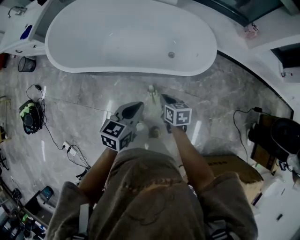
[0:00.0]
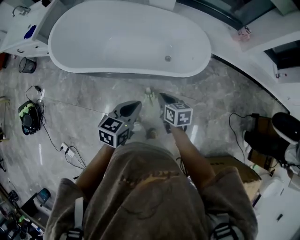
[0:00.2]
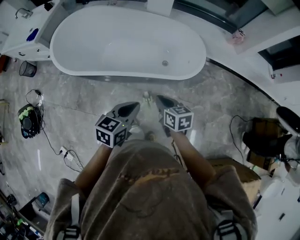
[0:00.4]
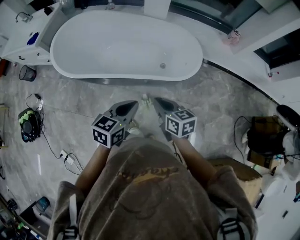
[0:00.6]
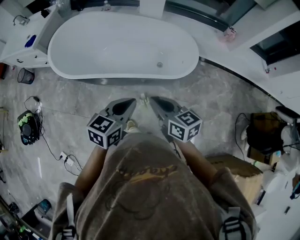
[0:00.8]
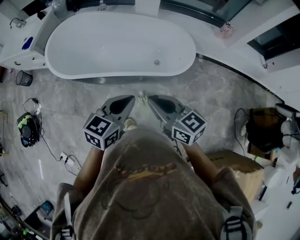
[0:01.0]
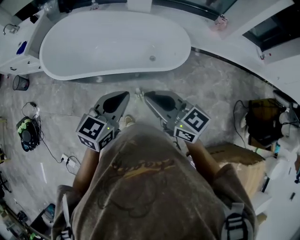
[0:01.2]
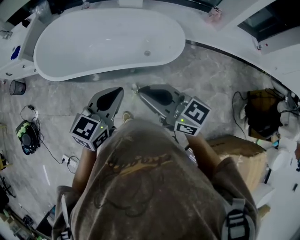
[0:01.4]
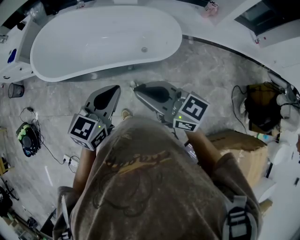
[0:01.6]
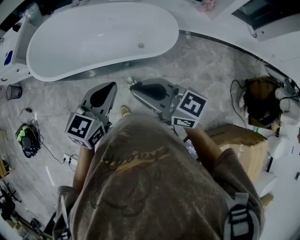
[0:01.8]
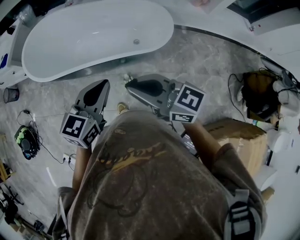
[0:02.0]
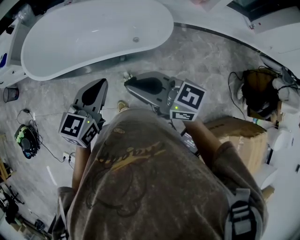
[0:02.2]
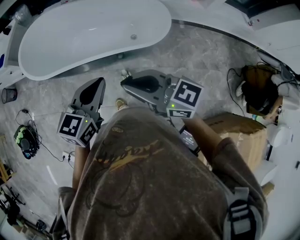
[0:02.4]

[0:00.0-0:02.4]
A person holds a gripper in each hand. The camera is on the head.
0.0 to 1.2 s: The left gripper moves upward, roughly 15 cm, and turns by roughly 20 degrees. Meanwhile the right gripper is displaced upward by approximately 30 cm, and tilts its fingers about 40 degrees upward.
1.2 to 2.4 s: The grippers move only a little.

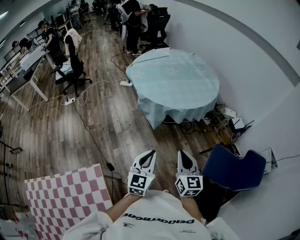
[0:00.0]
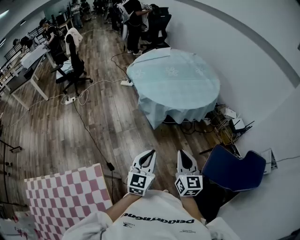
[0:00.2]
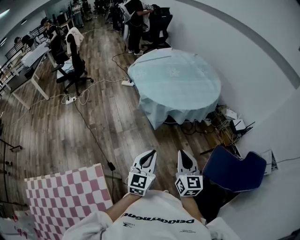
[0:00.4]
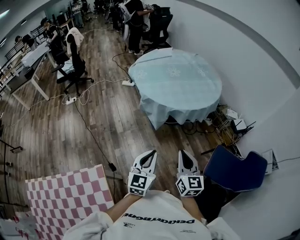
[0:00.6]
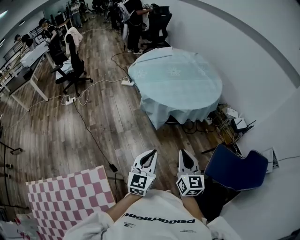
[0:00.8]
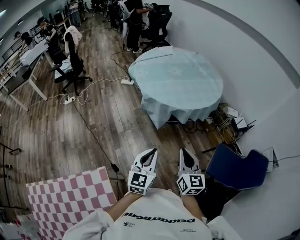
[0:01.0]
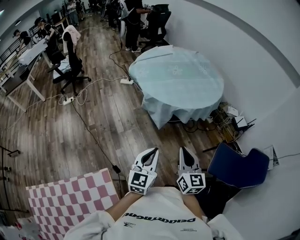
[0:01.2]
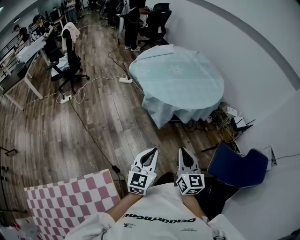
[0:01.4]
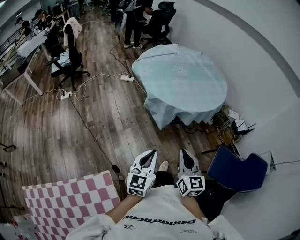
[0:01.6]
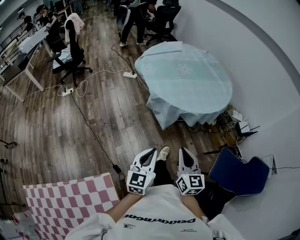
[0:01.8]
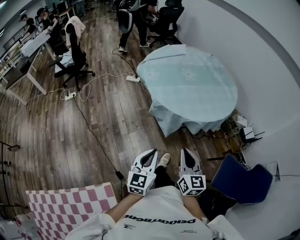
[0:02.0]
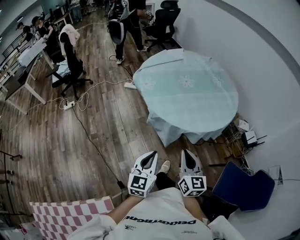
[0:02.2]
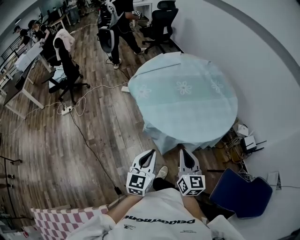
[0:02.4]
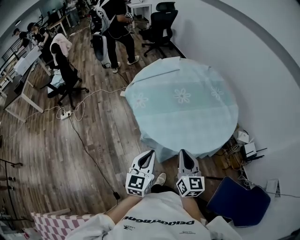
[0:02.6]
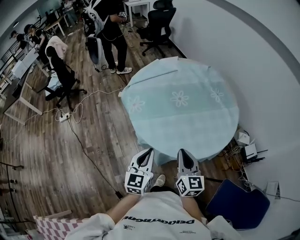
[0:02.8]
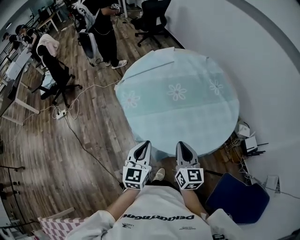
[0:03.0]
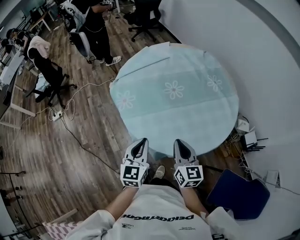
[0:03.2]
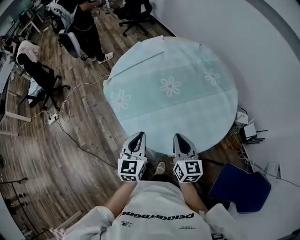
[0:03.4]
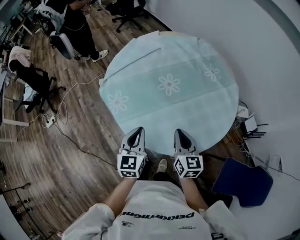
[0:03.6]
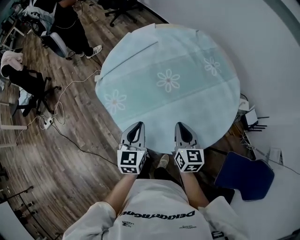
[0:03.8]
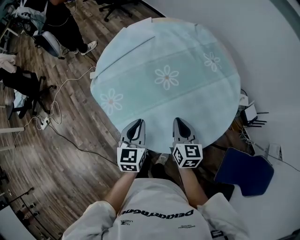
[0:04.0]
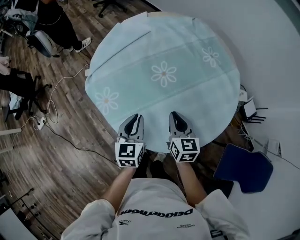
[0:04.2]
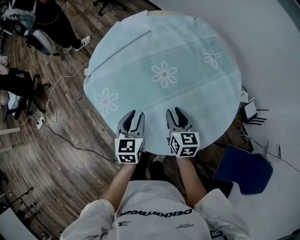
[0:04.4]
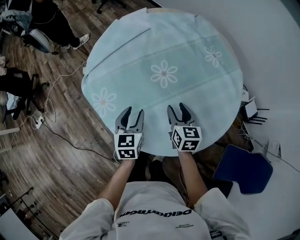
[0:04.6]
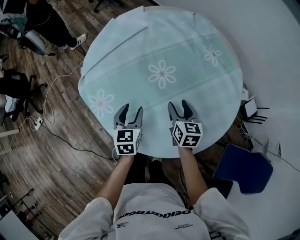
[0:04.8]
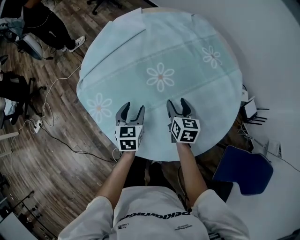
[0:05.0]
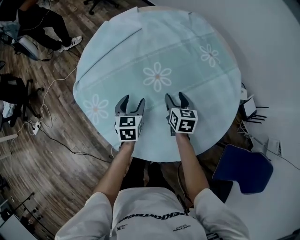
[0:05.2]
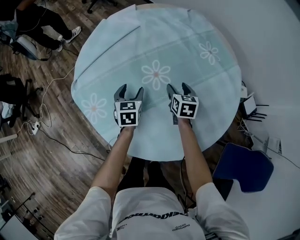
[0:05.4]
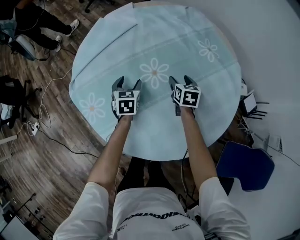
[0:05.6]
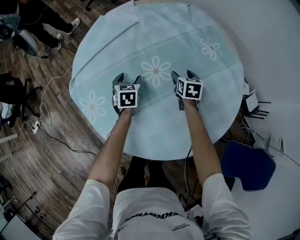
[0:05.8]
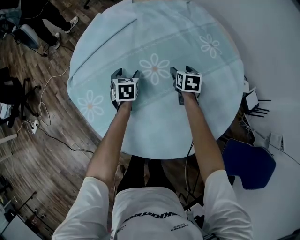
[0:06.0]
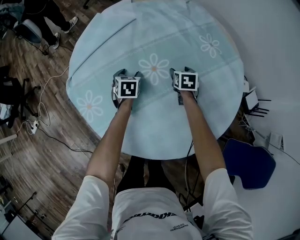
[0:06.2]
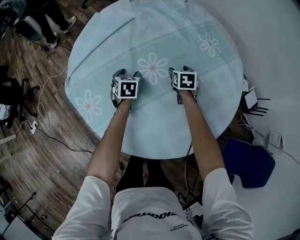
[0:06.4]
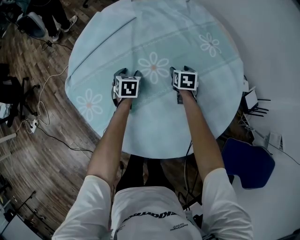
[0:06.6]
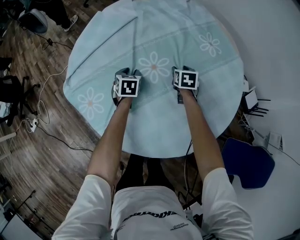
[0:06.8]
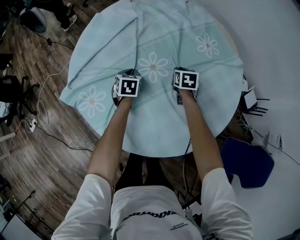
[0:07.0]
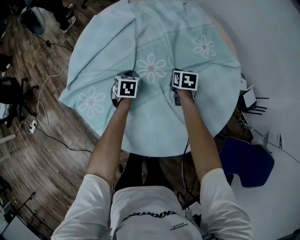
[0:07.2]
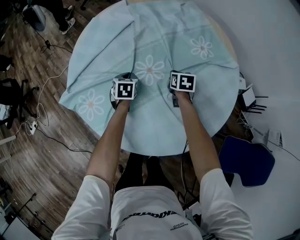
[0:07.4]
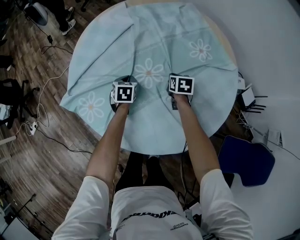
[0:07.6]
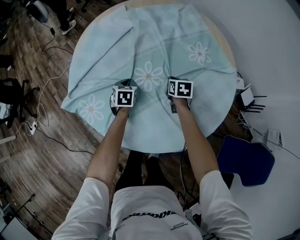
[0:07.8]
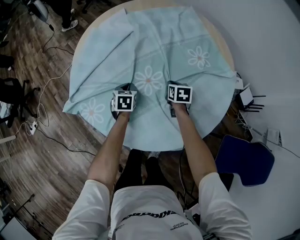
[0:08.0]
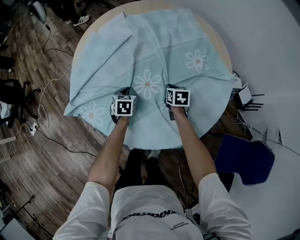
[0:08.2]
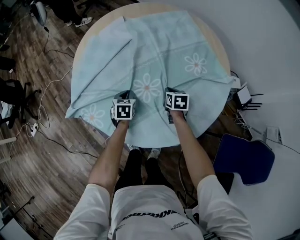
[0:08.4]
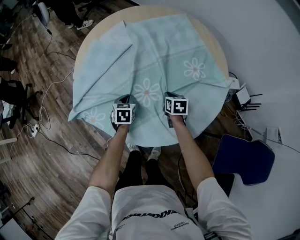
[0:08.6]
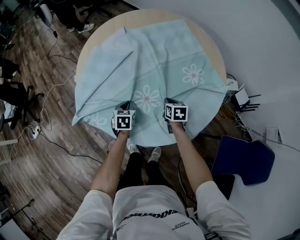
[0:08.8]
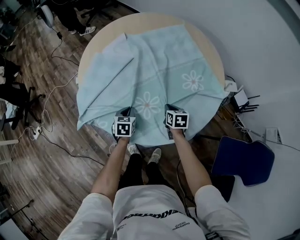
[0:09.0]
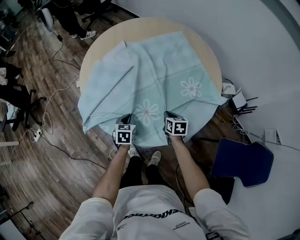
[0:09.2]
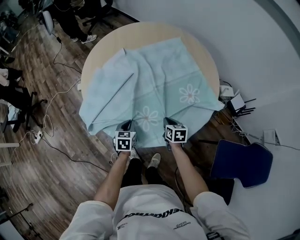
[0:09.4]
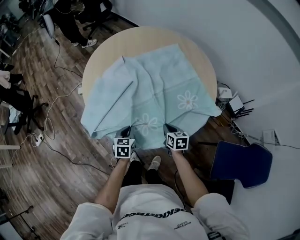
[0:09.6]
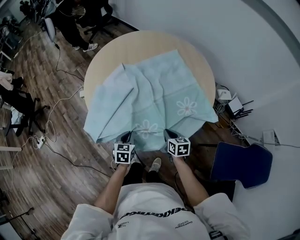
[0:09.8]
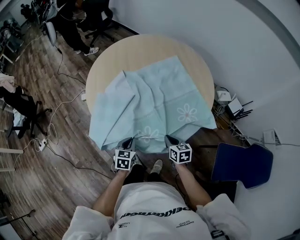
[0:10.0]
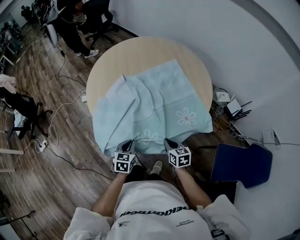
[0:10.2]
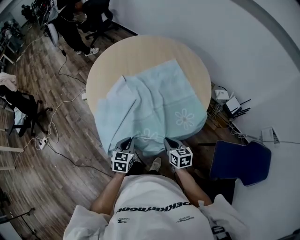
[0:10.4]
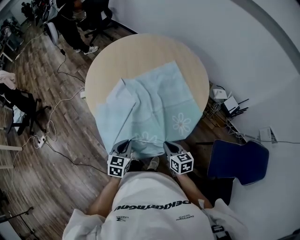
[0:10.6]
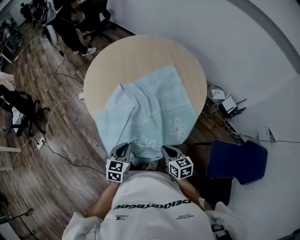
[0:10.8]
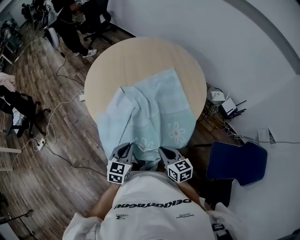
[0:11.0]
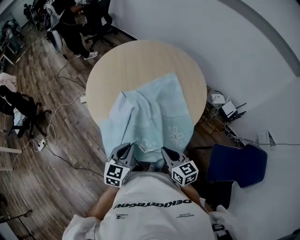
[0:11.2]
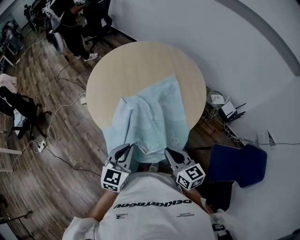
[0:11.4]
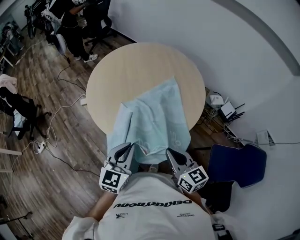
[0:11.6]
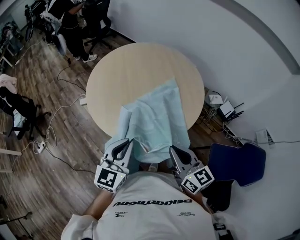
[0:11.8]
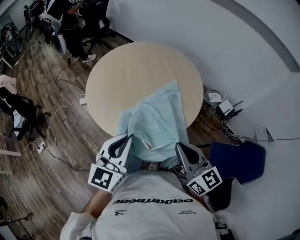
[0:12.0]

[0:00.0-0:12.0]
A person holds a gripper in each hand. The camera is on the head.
0.0 to 1.6 s: The two grippers go roughly 15 cm to the left.
1.6 to 3.0 s: The pair of grippers is taken forward, some 50 cm.
3.0 to 4.4 s: Both grippers travel together forward and downward, some 30 cm. The right gripper changes its angle by some 20 degrees, and opens; the left gripper opens up.
4.4 to 6.0 s: The left gripper goes approximately 30 cm forward and downward, and opens. Meanwhile the right gripper goes some 30 cm forward, downward and to the right, and opens up.
6.0 to 7.6 s: The left gripper changes place by about 5 cm, and closes up. The right gripper goes some 5 cm backward, and closes its fingers.
7.6 to 9.0 s: Both grippers move backward, about 20 cm.
9.0 to 10.4 s: The two grippers go about 25 cm backward and upward.
10.4 to 12.0 s: The two grippers go some 30 cm upward. The left gripper tips its fingers upward by approximately 30 degrees. The right gripper angles its fingers upward, by about 30 degrees.

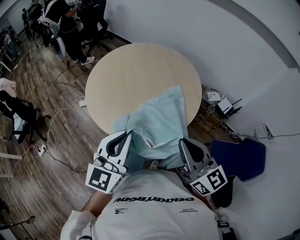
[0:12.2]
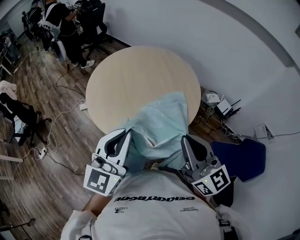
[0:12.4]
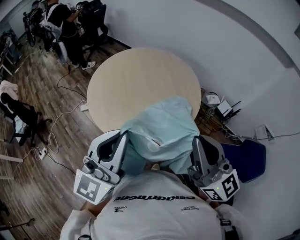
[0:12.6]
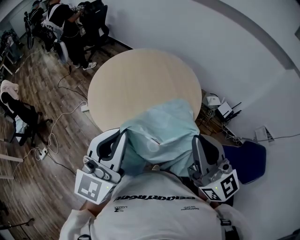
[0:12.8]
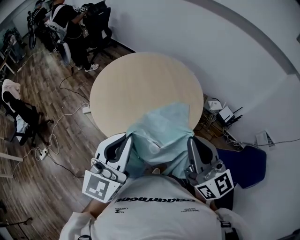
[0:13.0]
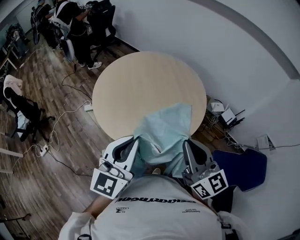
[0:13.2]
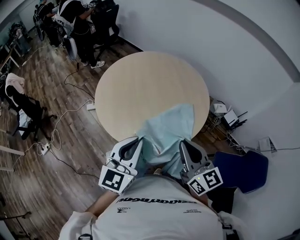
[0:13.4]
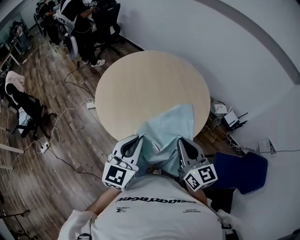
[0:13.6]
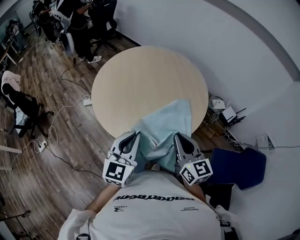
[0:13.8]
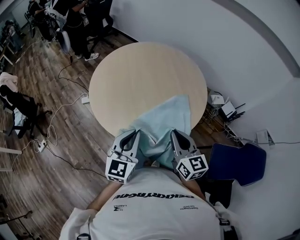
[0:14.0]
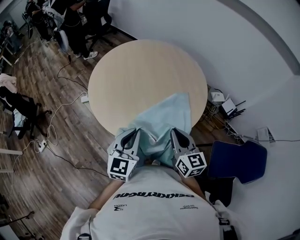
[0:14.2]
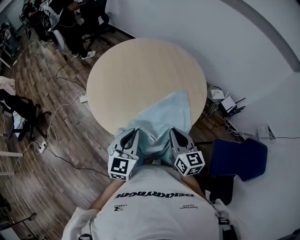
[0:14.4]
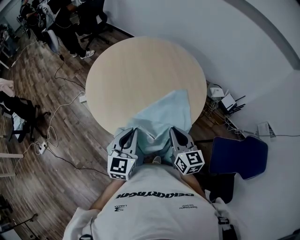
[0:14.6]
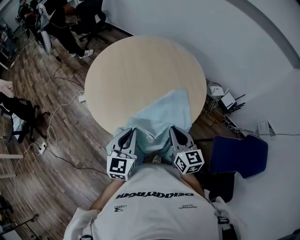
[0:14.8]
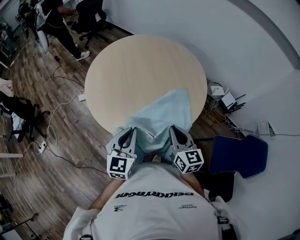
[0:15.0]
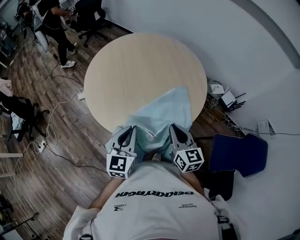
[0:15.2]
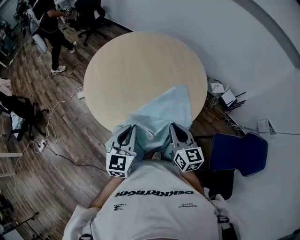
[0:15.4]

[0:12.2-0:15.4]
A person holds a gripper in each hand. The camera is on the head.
12.2 to 13.8 s: The right gripper goes about 10 cm downward and forward, while the left gripper is displaced downward by about 10 cm.
13.8 to 15.4 s: The grippers both shift downward by about 10 cm.

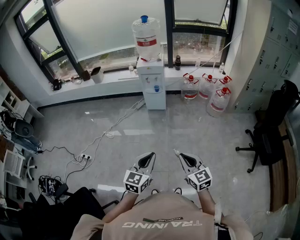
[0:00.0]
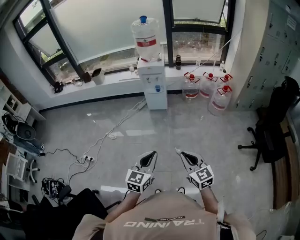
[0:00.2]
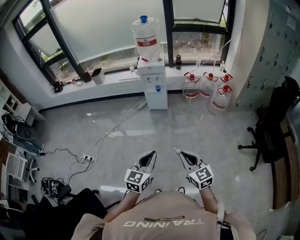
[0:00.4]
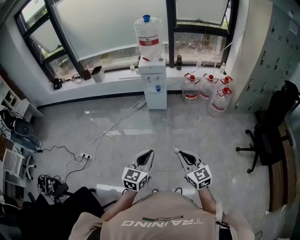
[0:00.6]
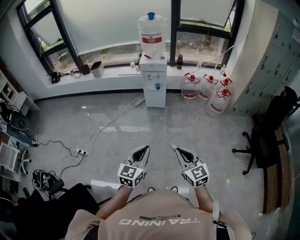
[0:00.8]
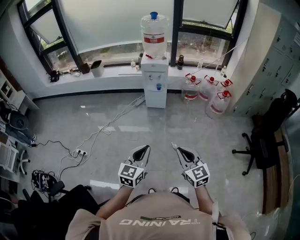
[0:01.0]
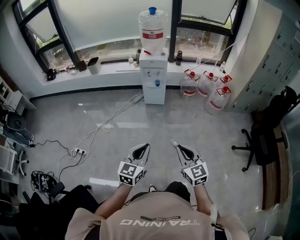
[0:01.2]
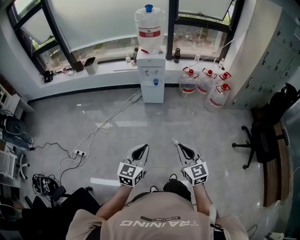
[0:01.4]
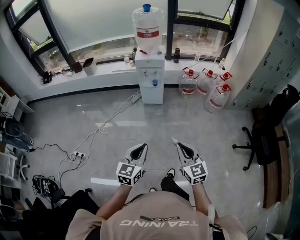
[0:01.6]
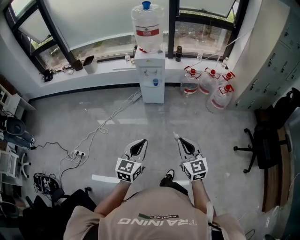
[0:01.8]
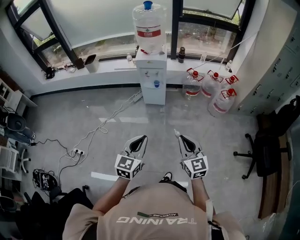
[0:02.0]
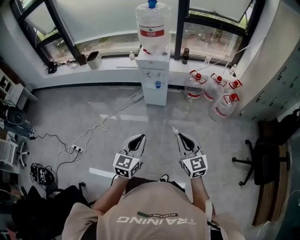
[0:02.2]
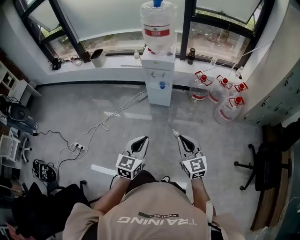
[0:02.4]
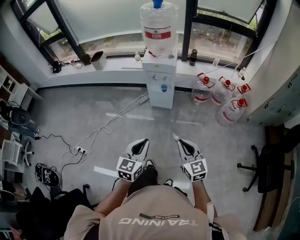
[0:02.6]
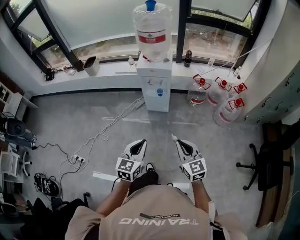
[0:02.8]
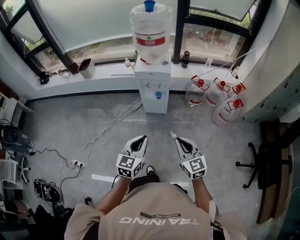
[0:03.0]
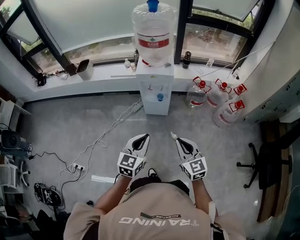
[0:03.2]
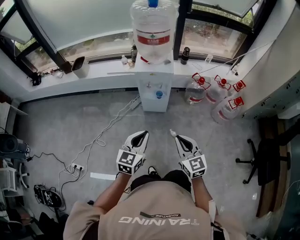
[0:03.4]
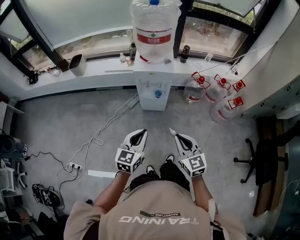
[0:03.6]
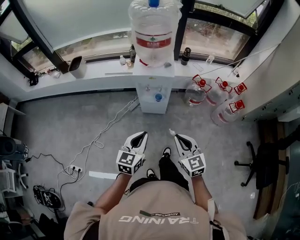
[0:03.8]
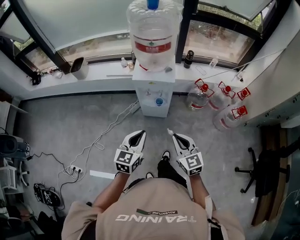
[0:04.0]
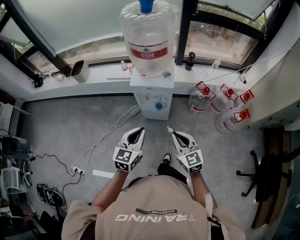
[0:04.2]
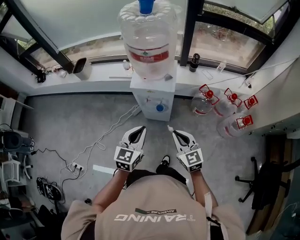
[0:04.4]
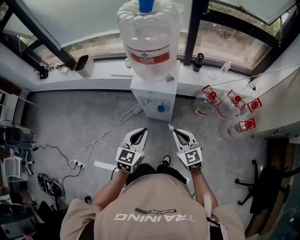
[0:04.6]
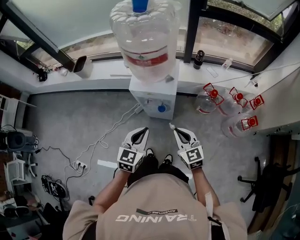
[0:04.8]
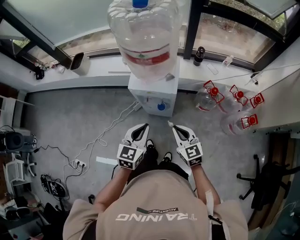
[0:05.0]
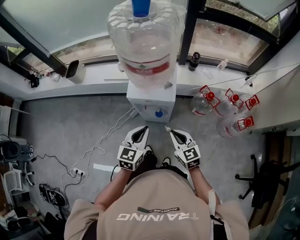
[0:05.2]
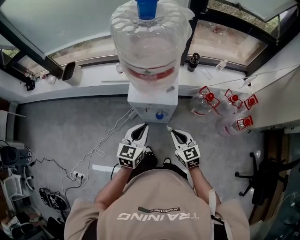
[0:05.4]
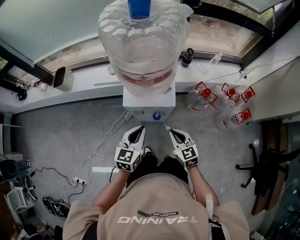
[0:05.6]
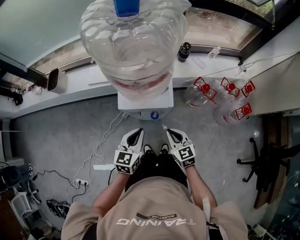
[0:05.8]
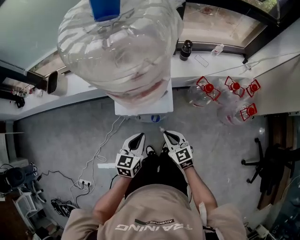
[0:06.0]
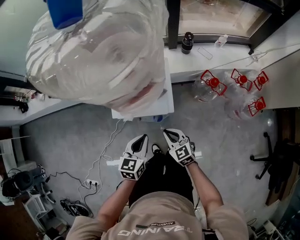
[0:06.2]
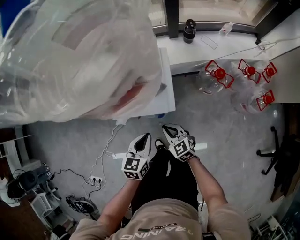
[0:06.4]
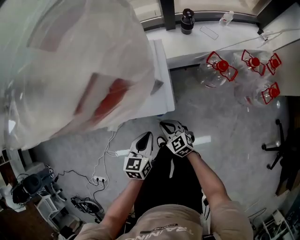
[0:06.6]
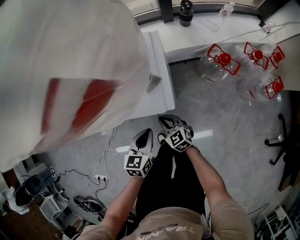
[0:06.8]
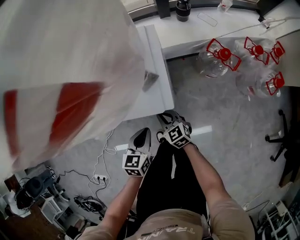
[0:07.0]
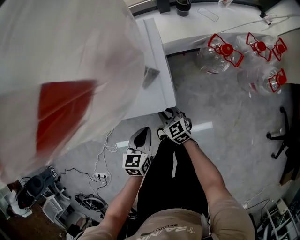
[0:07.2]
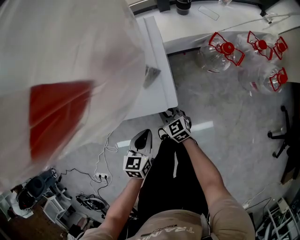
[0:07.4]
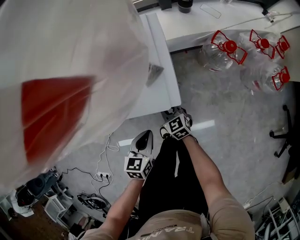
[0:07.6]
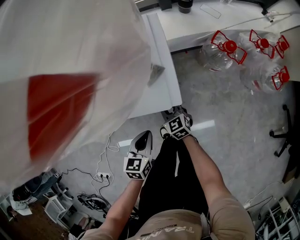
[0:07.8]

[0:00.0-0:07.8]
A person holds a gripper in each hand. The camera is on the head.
0.0 to 1.6 s: The right gripper moves forward, about 10 cm. The left gripper moves forward and to the left, approximately 15 cm.
1.6 to 3.2 s: Both grippers move forward, some 35 cm.
3.2 to 4.6 s: The two grippers go about 25 cm forward.
4.6 to 6.2 s: The left gripper shifts some 20 cm forward and downward. Meanwhile the right gripper goes about 25 cm downward and forward.
6.2 to 7.8 s: Both grippers travel together downward, about 20 cm.
